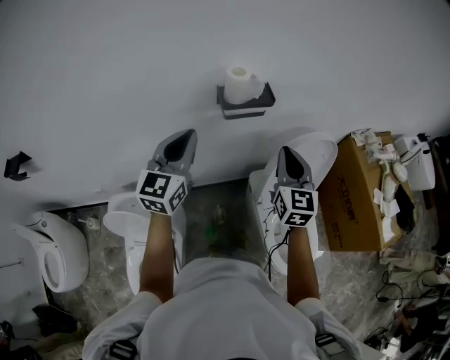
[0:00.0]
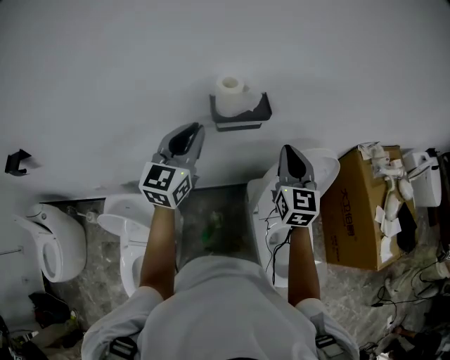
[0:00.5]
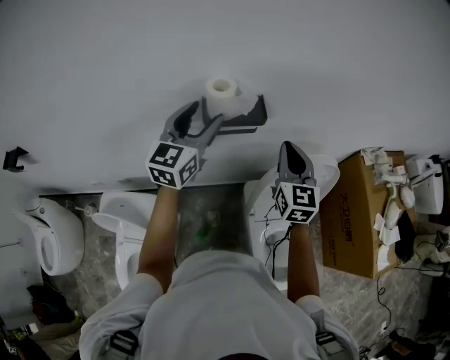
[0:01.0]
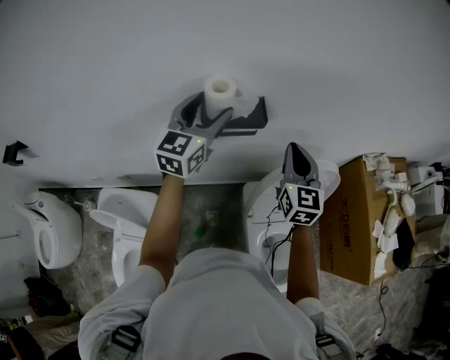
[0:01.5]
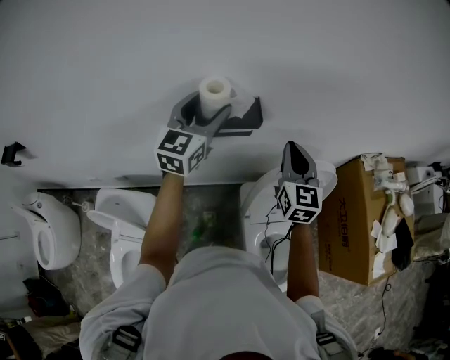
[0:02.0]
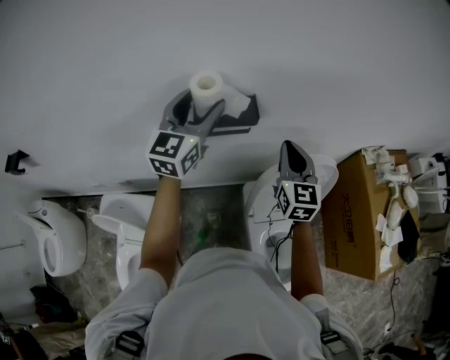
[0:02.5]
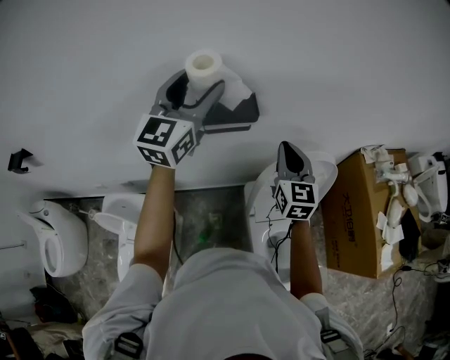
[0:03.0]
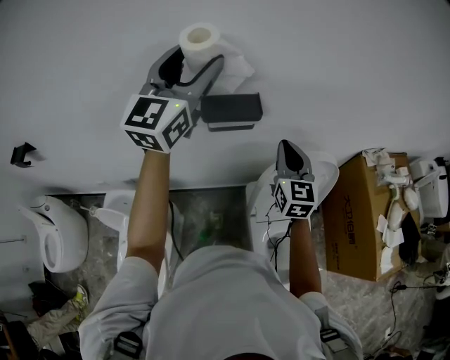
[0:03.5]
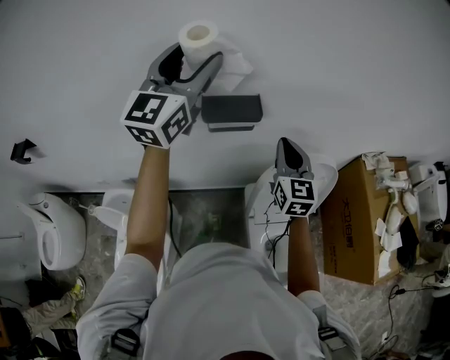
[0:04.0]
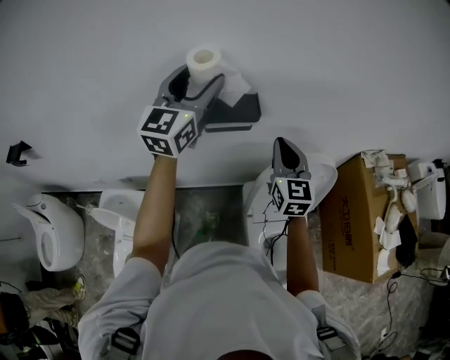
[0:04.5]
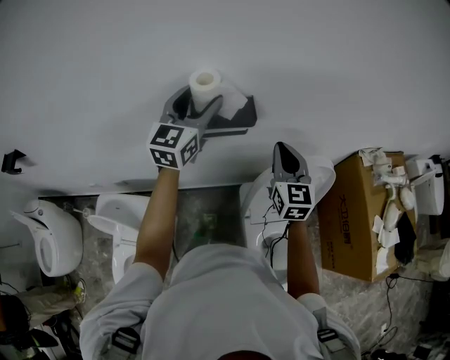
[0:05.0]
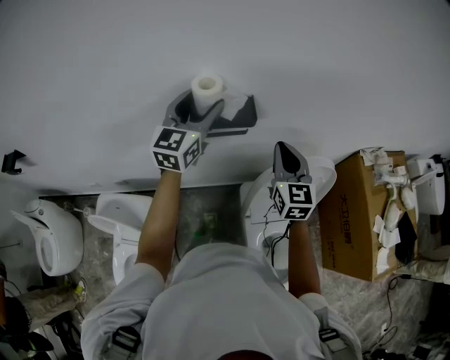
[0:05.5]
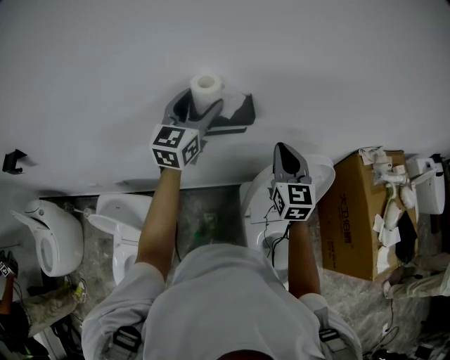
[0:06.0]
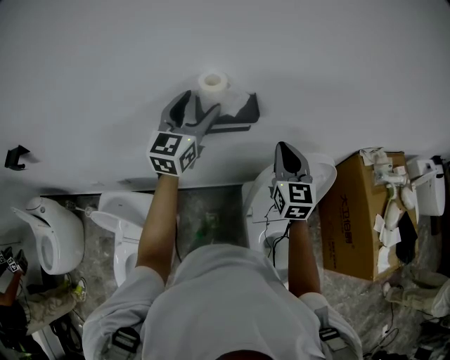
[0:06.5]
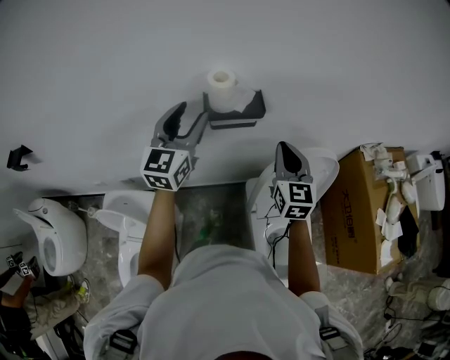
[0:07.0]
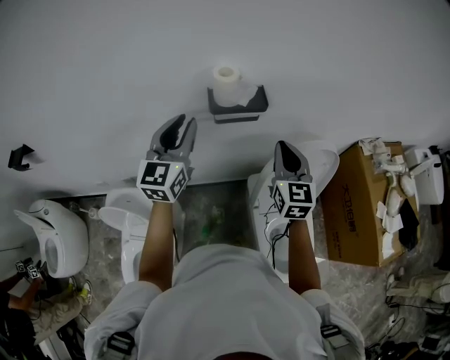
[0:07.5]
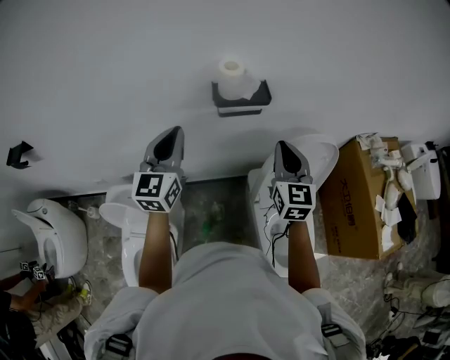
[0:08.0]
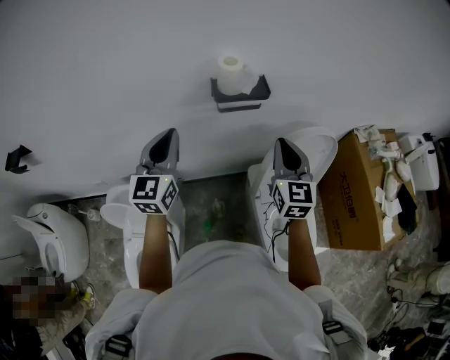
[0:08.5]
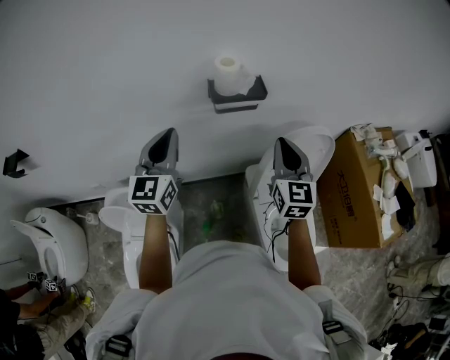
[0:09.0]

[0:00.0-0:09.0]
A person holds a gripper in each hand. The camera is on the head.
0:00.0 to 0:02.0: Both grippers move forward and to the right, some 20 cm. The left gripper opens.
0:02.0 to 0:04.5: The left gripper shifts about 10 cm upward.
0:04.5 to 0:07.0: The left gripper shifts some 10 cm downward and backward.
0:07.0 to 0:09.0: The right gripper heads backward, covering about 10 cm; the left gripper travels backward and to the left by roughly 15 cm, and closes.

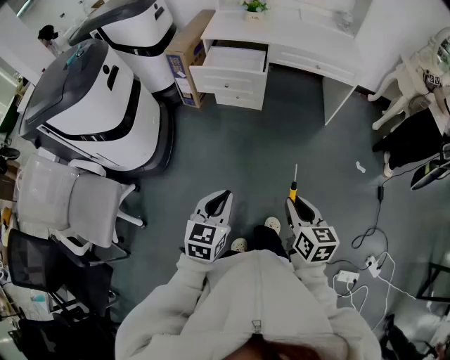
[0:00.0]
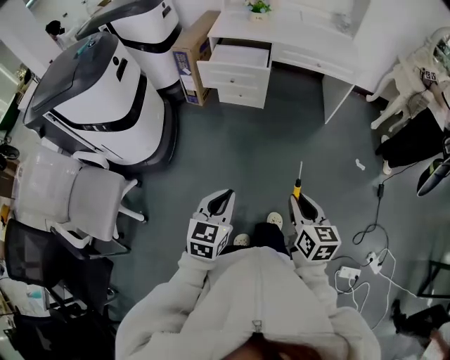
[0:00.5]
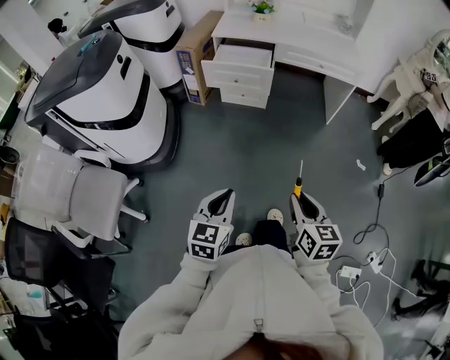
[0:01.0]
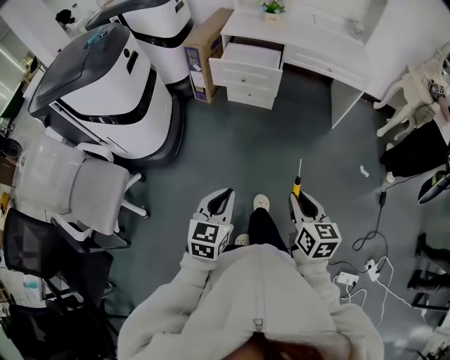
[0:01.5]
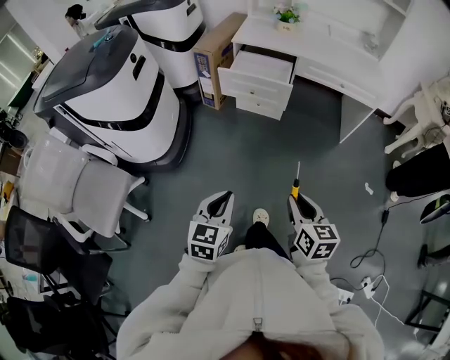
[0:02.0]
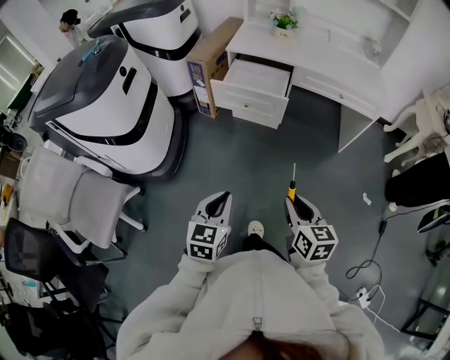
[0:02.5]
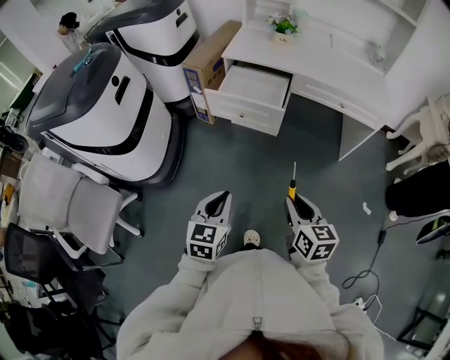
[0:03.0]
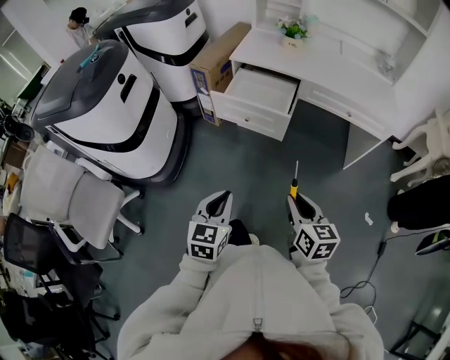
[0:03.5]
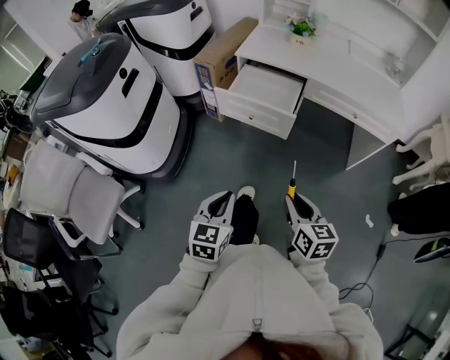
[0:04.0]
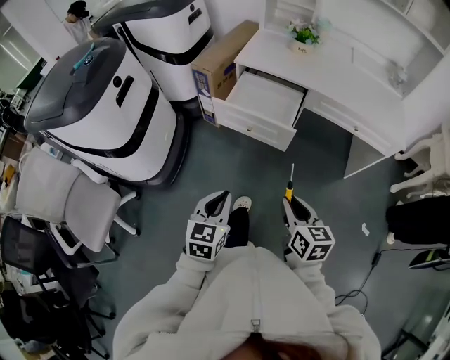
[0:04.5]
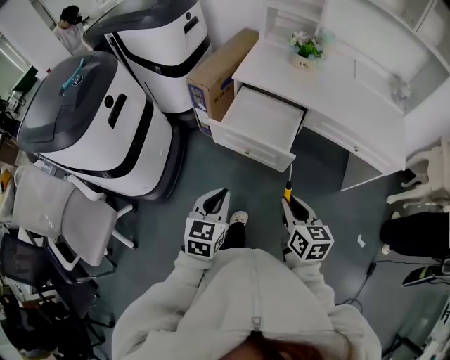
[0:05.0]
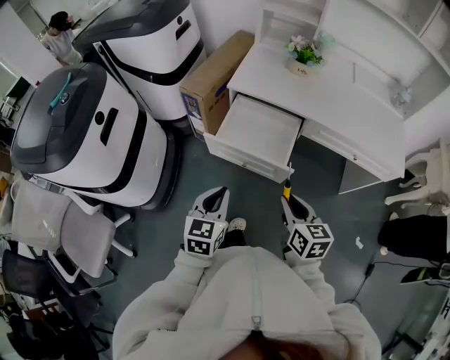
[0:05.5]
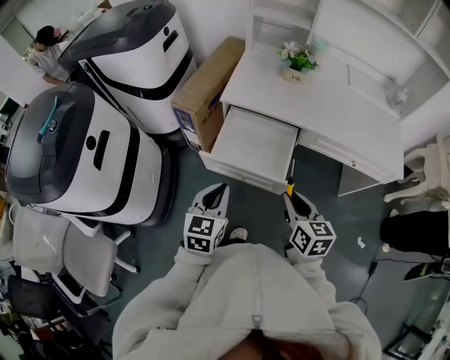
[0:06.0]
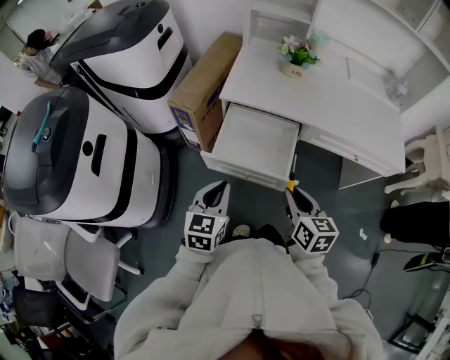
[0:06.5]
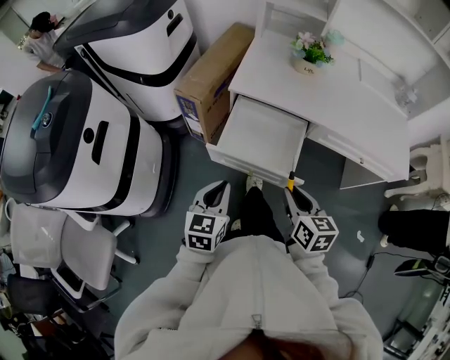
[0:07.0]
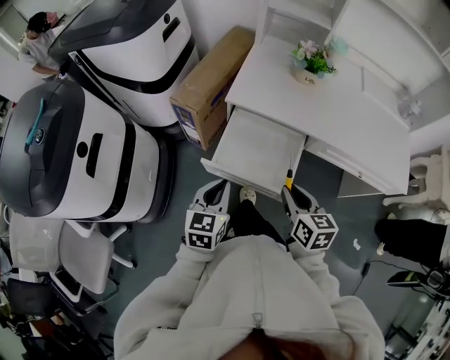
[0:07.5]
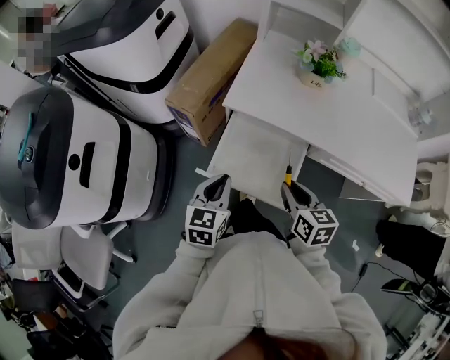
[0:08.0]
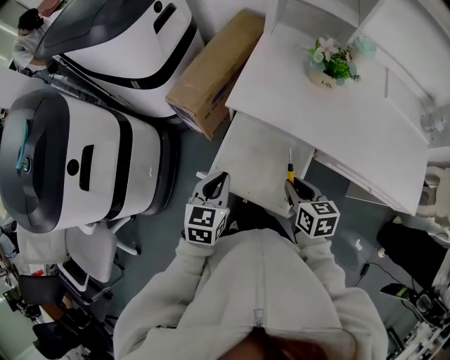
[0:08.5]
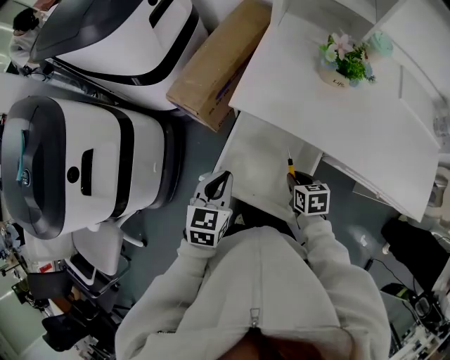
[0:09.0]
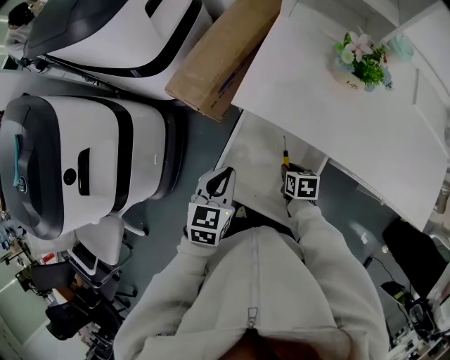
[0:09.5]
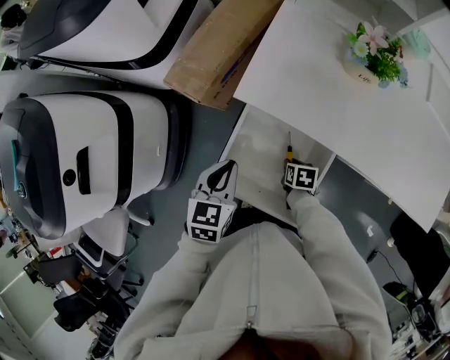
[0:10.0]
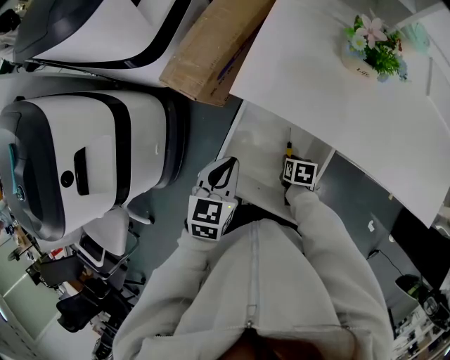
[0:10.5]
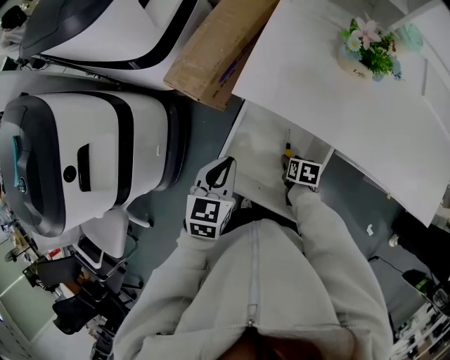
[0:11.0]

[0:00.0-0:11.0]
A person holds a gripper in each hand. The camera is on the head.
0:00.0 to 0:02.0: The grippers both shift to the left by roughly 5 cm.
0:02.0 to 0:03.5: Both grippers move forward, some 15 cm.
0:03.5 to 0:05.5: The two grippers go some 25 cm forward.
0:05.5 to 0:07.5: Both grippers travel together forward, about 15 cm.
0:07.5 to 0:09.0: The left gripper shifts some 10 cm forward, while the right gripper moves downward and forward, about 20 cm, and turns by approximately 30 degrees.
0:09.0 to 0:11.0: The right gripper travels downward by approximately 10 cm, changes its angle by about 20 degrees, and opens.

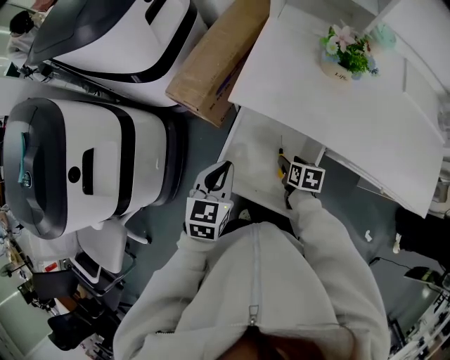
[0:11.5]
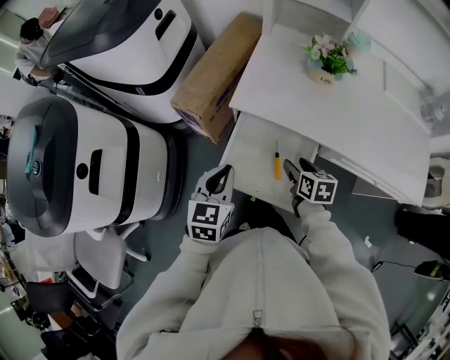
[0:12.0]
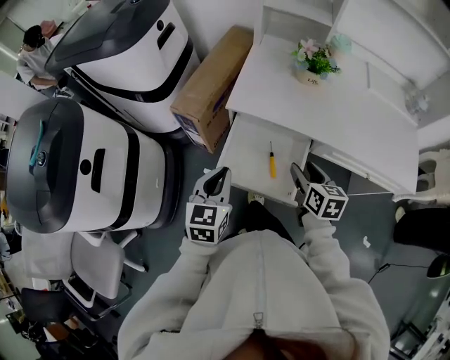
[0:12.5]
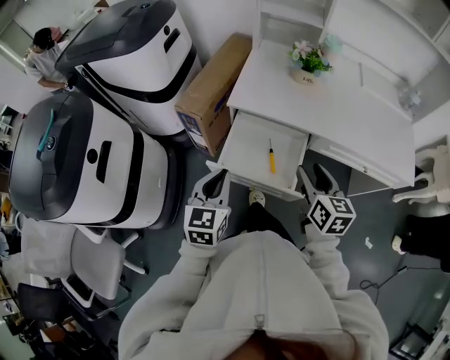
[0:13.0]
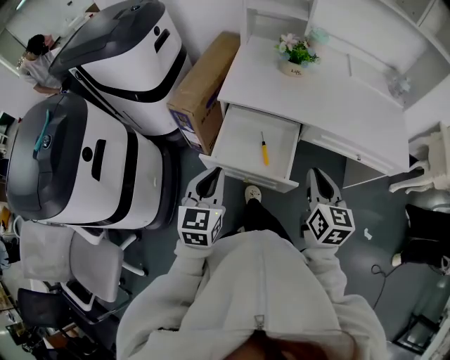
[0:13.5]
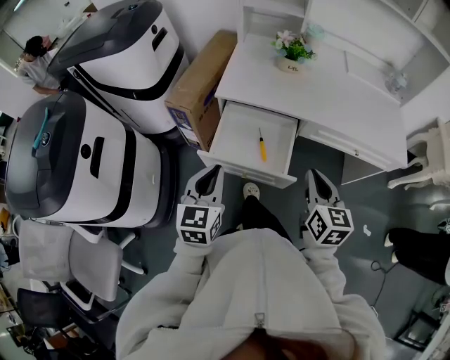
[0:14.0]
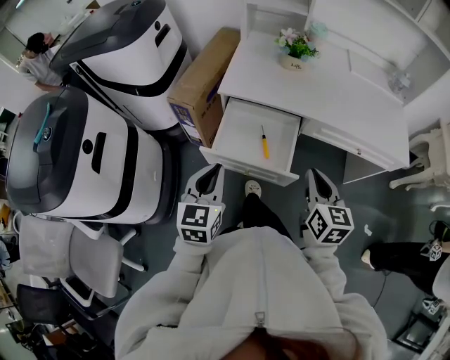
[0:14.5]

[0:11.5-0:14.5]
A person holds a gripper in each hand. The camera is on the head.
0:11.5 to 0:13.0: The left gripper heads backward and upward, covering approximately 15 cm, while the right gripper is displaced upward and backward by approximately 30 cm, and tips its fingers upward by some 30 degrees.
0:13.0 to 0:14.5: The right gripper goes some 10 cm backward, and closes its fingers.

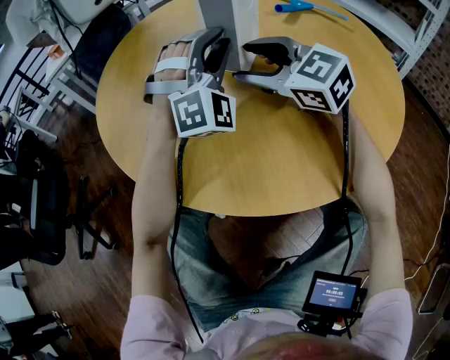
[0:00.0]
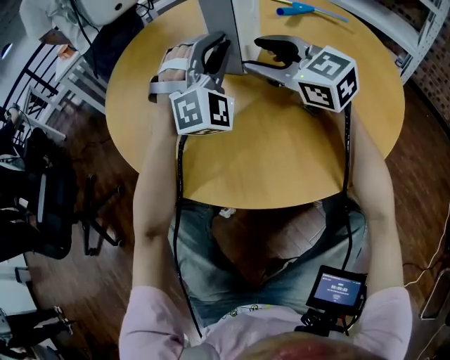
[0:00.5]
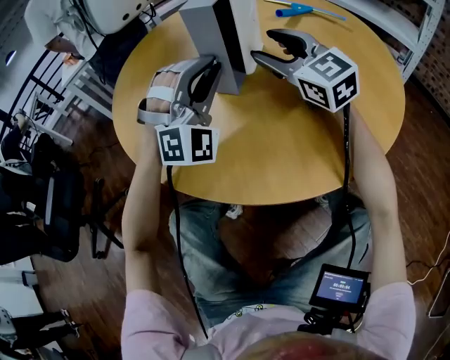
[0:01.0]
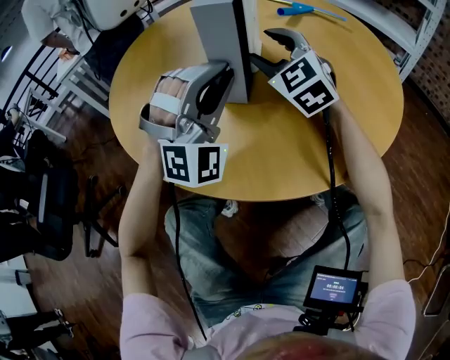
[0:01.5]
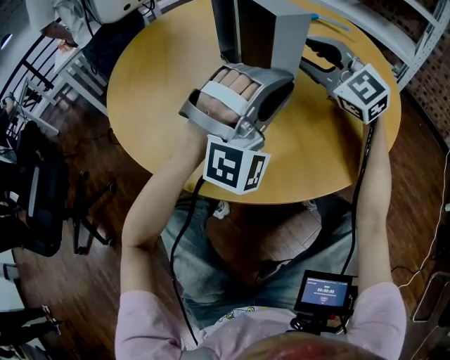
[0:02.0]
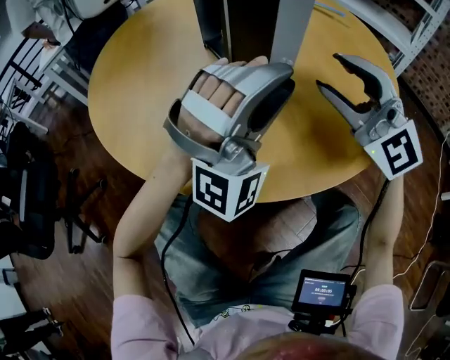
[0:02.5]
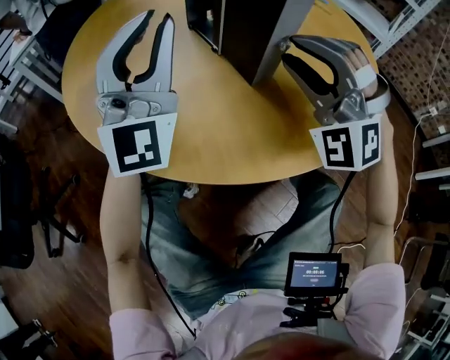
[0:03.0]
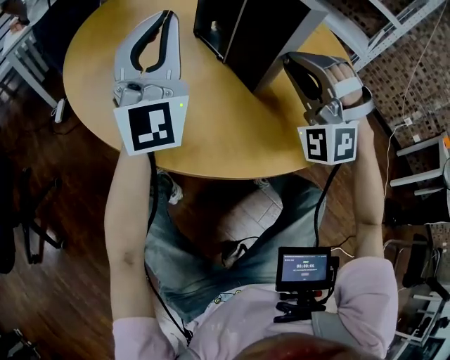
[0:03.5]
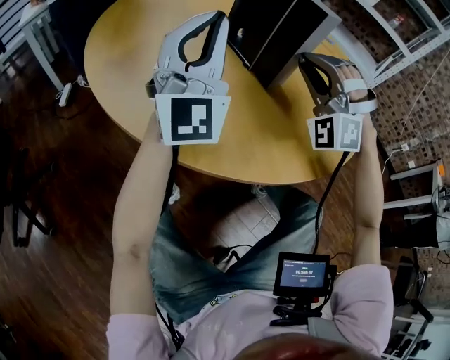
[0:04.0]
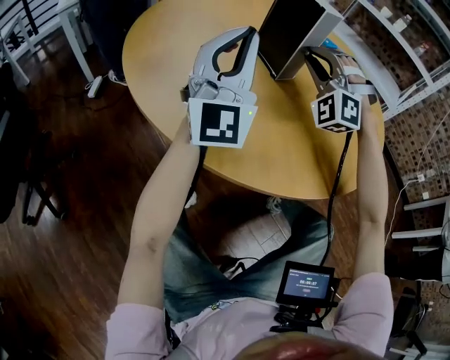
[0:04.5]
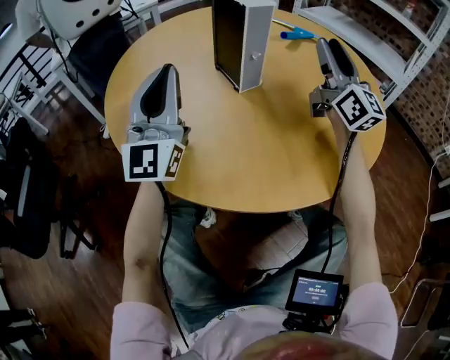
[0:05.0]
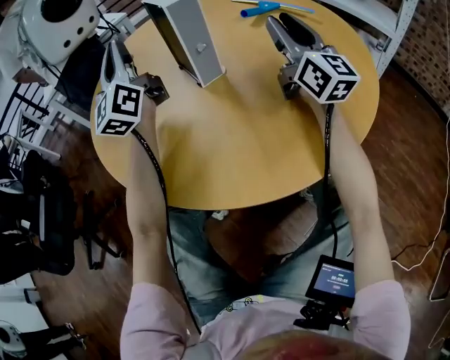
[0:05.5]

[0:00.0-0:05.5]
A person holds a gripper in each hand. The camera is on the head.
0:00.0 to 0:02.0: The right gripper travels to the right by about 10 cm, and swivels about 20 degrees; the left gripper travels backward and to the right by approximately 15 cm, and changes its angle by roughly 20 degrees.
0:02.0 to 0:03.5: The left gripper heads to the left, covering roughly 20 cm, and tilts its fingers about 30 degrees upward. The right gripper heads backward, covering about 10 cm, rotates around the line of its fingers by roughly 60 degrees, counterclockwise from behind, and closes up.
0:03.5 to 0:05.5: The right gripper travels forward, to the right and upward by roughly 20 cm, and rolls clockwise, seen from behind, by about 110 degrees, while the left gripper is displaced forward by approximately 10 cm, and swivels roughly 40 degrees.
